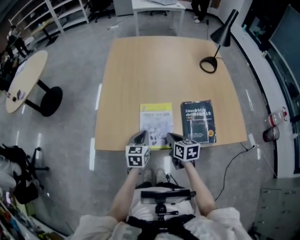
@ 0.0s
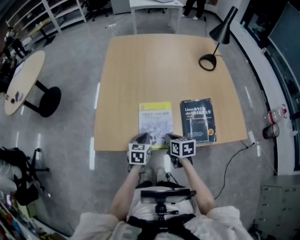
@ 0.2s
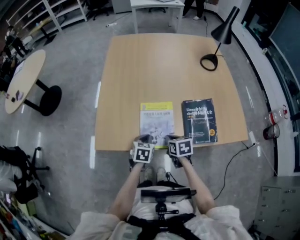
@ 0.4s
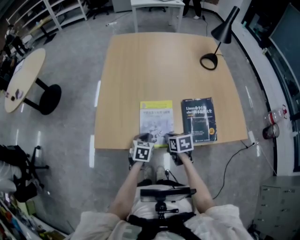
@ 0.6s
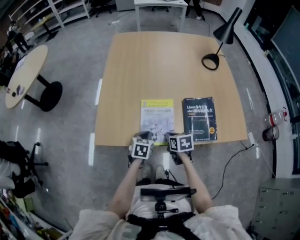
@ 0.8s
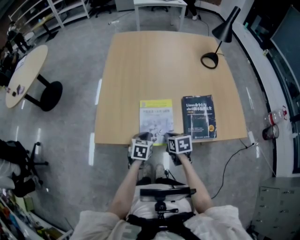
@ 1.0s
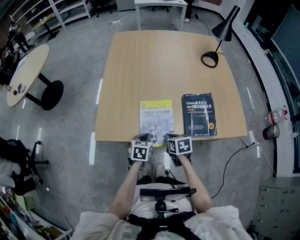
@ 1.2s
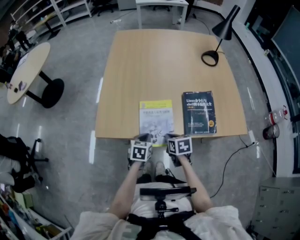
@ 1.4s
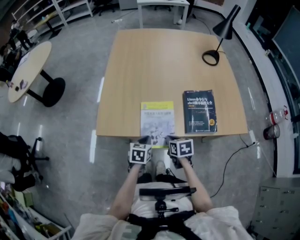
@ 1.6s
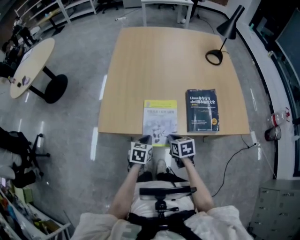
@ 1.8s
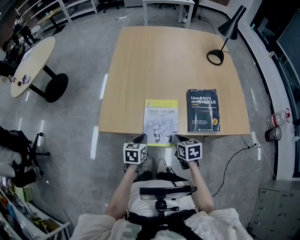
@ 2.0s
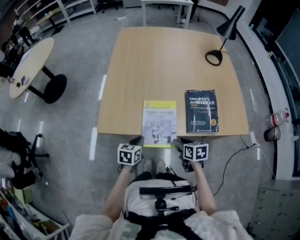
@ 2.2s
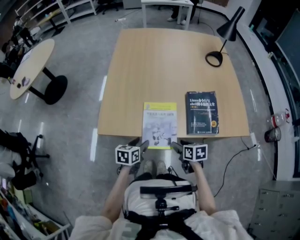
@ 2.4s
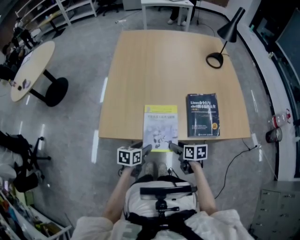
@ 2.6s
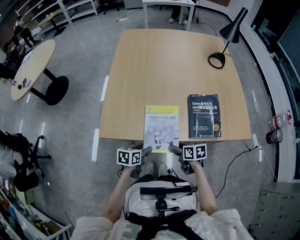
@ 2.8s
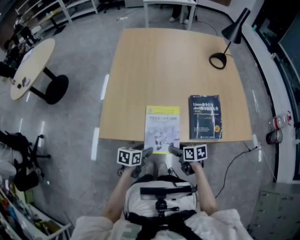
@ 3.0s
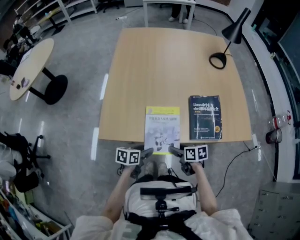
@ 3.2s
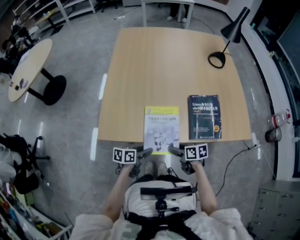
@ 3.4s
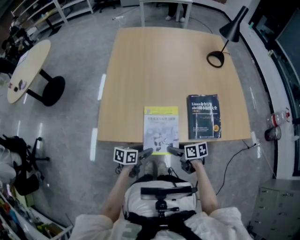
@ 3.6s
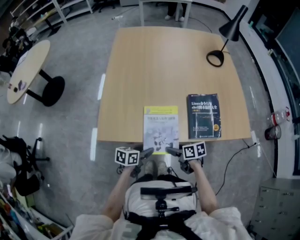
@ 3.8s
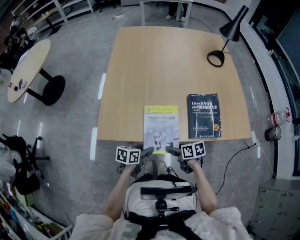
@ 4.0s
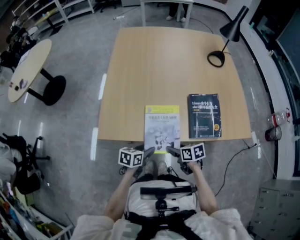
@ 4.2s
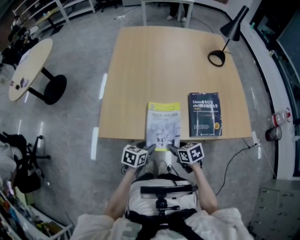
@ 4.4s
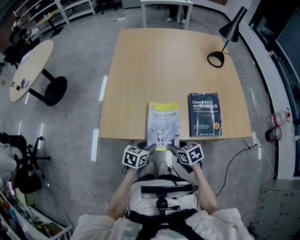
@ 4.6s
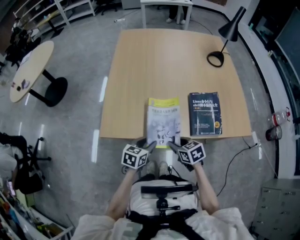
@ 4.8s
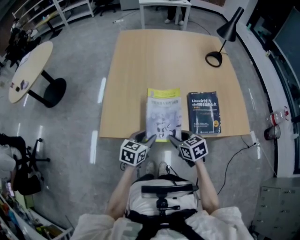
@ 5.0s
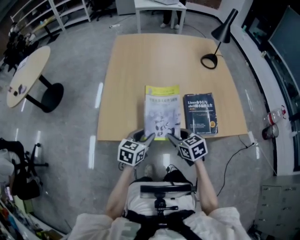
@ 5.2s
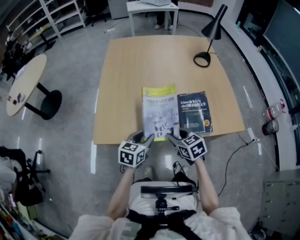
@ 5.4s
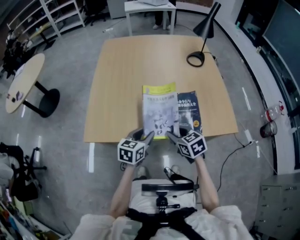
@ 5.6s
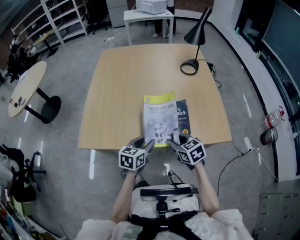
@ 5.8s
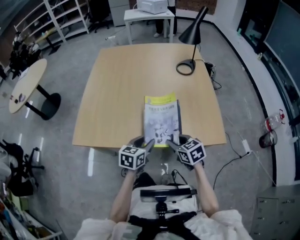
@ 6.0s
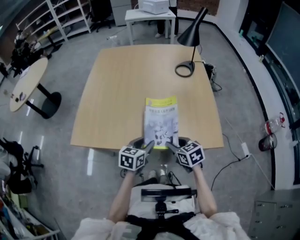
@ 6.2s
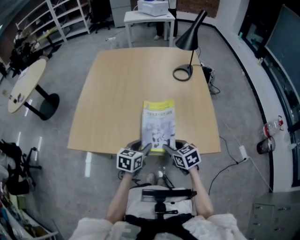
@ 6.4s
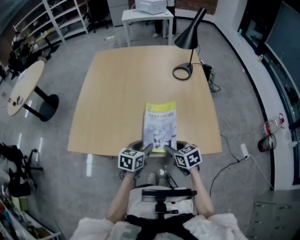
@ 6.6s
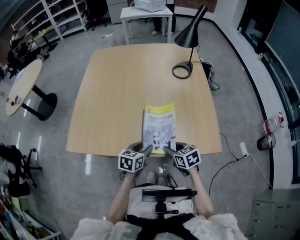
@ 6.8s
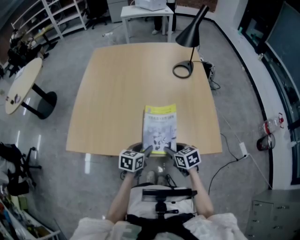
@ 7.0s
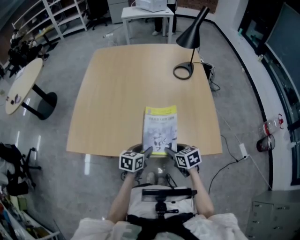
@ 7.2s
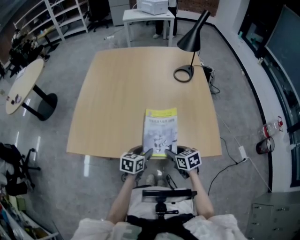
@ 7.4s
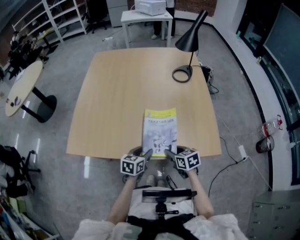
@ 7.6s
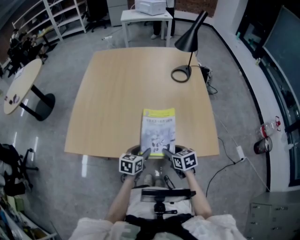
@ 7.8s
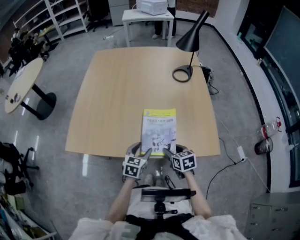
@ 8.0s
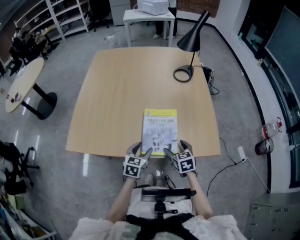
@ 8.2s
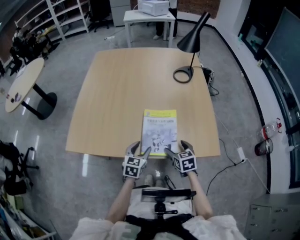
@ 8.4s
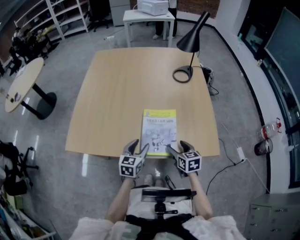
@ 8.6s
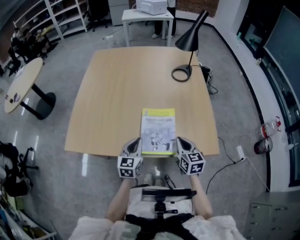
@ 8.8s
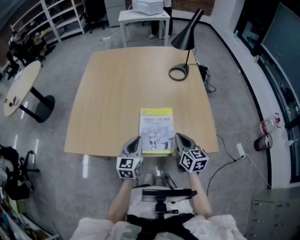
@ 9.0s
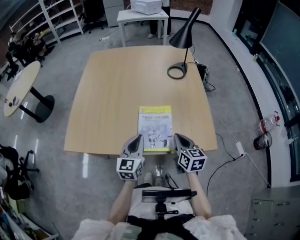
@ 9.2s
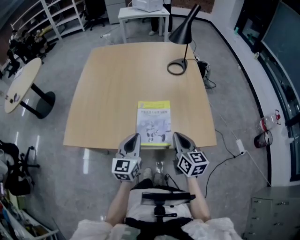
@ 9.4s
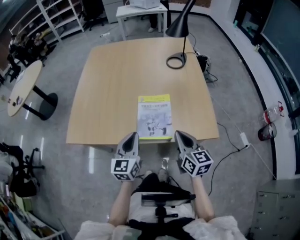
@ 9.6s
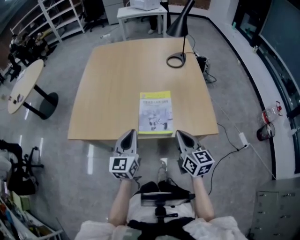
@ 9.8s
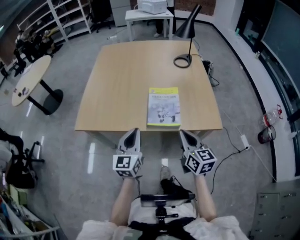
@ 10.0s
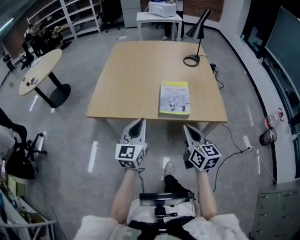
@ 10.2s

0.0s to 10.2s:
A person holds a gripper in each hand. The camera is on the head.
0.0s to 1.4s: Both grippers move backward and downward, approximately 10 cm.
1.4s to 3.0s: The right gripper opens up; the left gripper shifts by approximately 5 cm, swivels about 20 degrees, and opens.
3.0s to 4.4s: The grippers make only small movements.
4.4s to 5.8s: The two grippers go about 20 cm to the right and upward. The right gripper turns by approximately 20 degrees.
5.8s to 7.2s: The grippers both shift to the right and downward by roughly 10 cm.
7.2s to 8.8s: The right gripper shifts roughly 10 cm upward and to the right, turns by about 30 degrees, and closes up; the left gripper goes approximately 5 cm upward, rotates about 30 degrees, and closes up.
8.8s to 10.2s: Both grippers travel together backward, upward and to the left, some 25 cm.

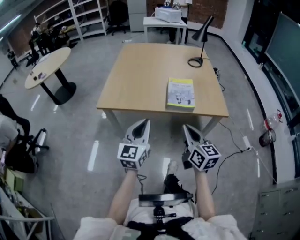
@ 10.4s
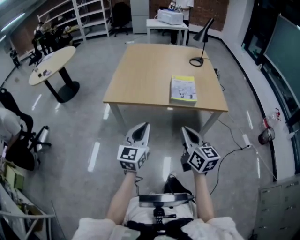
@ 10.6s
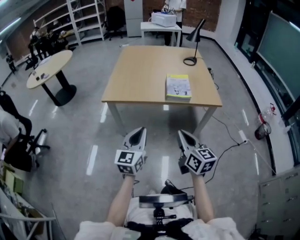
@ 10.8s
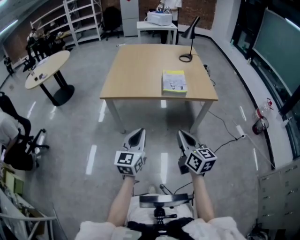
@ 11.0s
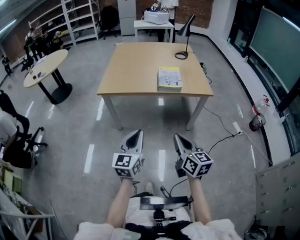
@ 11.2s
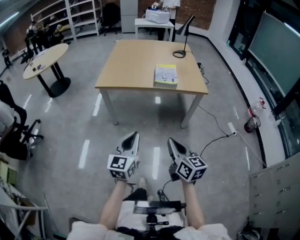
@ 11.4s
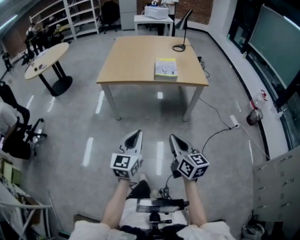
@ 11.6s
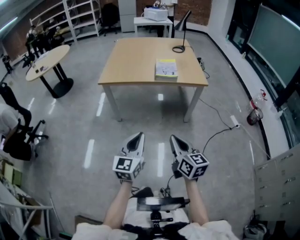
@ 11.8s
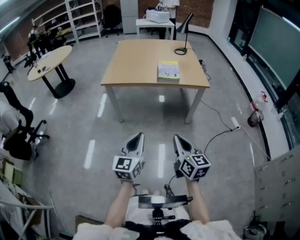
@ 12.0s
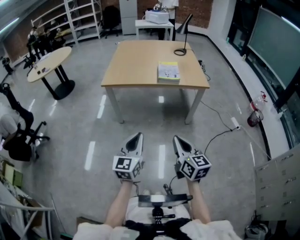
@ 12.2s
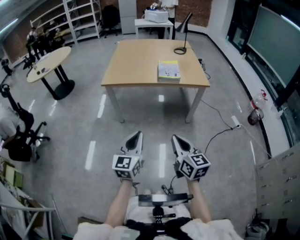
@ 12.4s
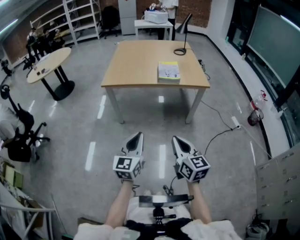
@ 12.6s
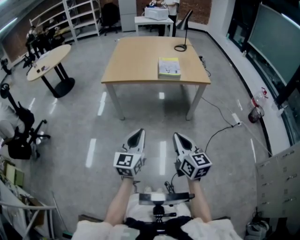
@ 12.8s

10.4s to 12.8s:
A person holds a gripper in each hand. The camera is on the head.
10.4s to 11.6s: The two grippers go approximately 35 cm backward.
11.6s to 12.8s: The grippers stay close to where they were, moving slightly.

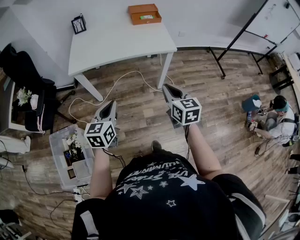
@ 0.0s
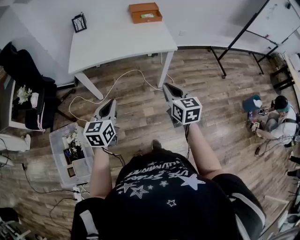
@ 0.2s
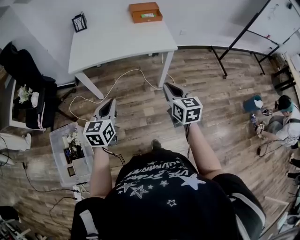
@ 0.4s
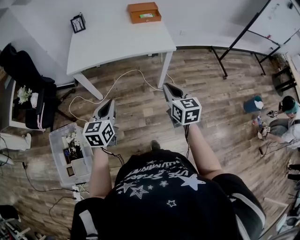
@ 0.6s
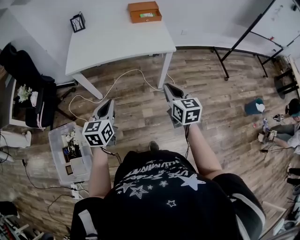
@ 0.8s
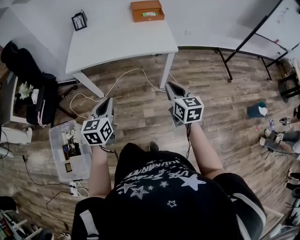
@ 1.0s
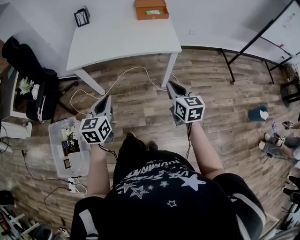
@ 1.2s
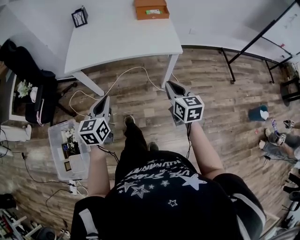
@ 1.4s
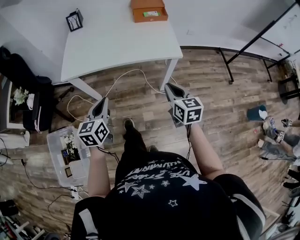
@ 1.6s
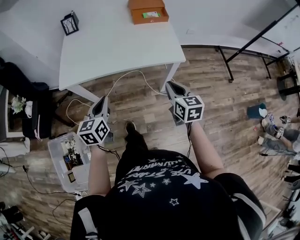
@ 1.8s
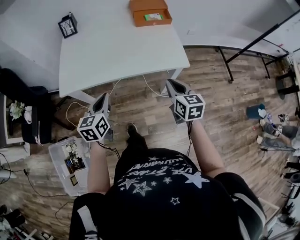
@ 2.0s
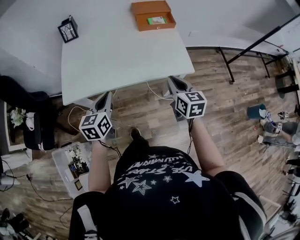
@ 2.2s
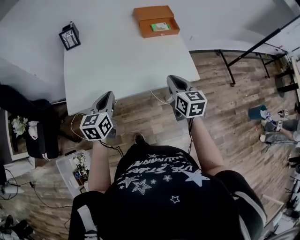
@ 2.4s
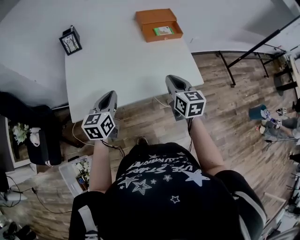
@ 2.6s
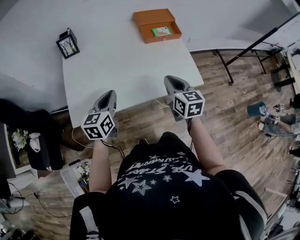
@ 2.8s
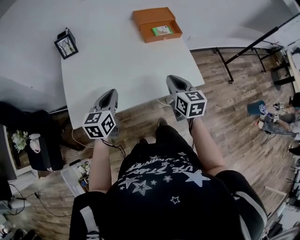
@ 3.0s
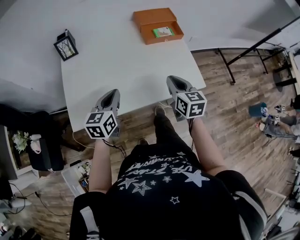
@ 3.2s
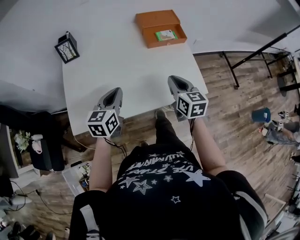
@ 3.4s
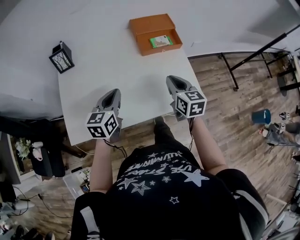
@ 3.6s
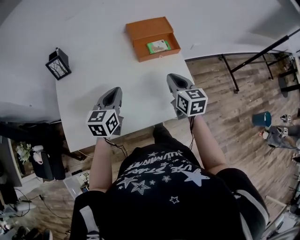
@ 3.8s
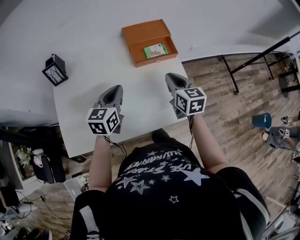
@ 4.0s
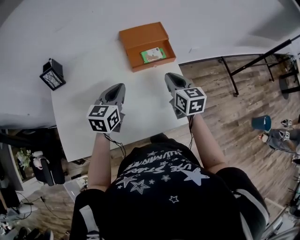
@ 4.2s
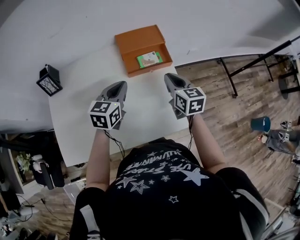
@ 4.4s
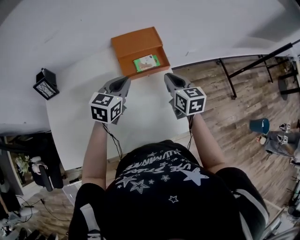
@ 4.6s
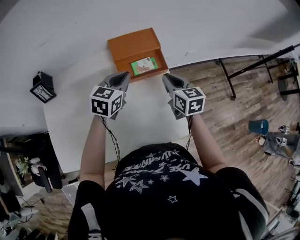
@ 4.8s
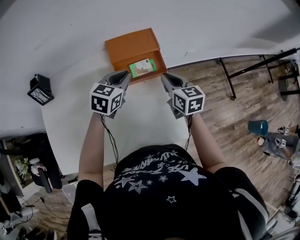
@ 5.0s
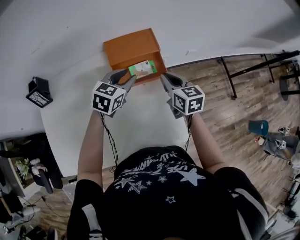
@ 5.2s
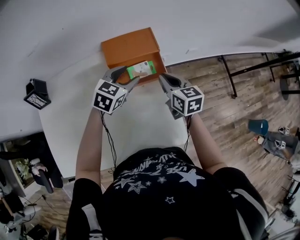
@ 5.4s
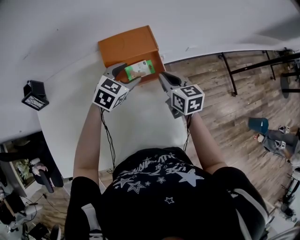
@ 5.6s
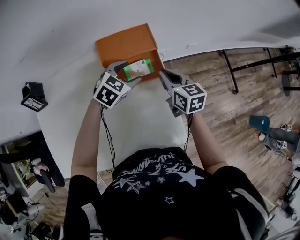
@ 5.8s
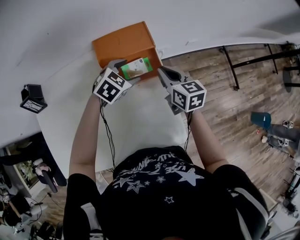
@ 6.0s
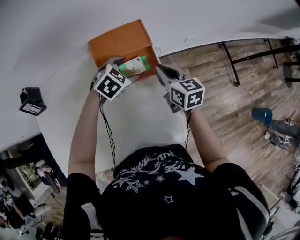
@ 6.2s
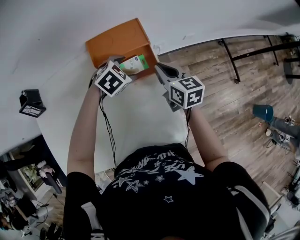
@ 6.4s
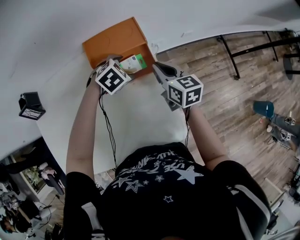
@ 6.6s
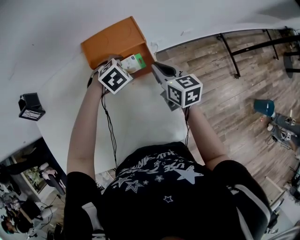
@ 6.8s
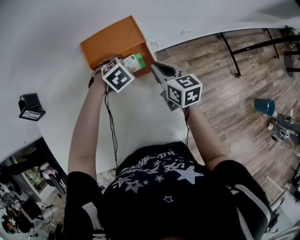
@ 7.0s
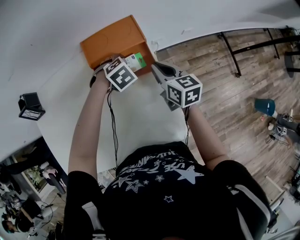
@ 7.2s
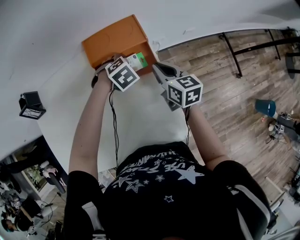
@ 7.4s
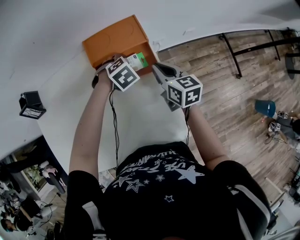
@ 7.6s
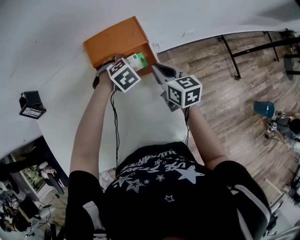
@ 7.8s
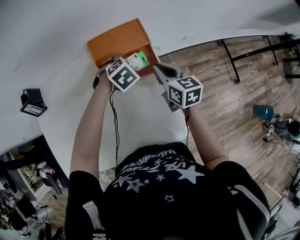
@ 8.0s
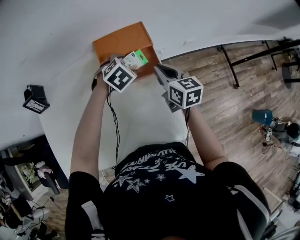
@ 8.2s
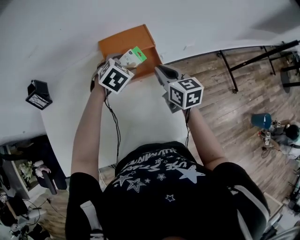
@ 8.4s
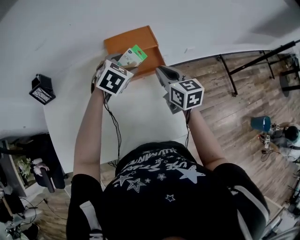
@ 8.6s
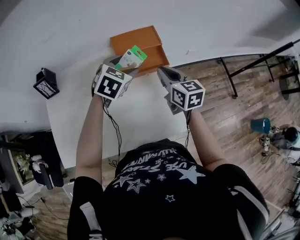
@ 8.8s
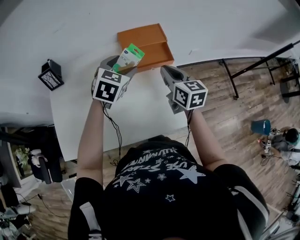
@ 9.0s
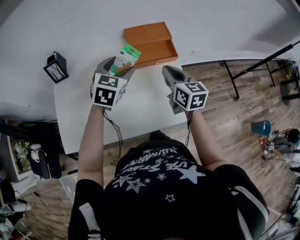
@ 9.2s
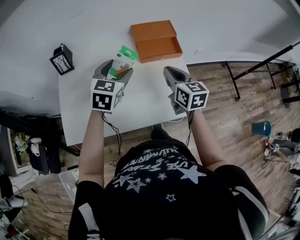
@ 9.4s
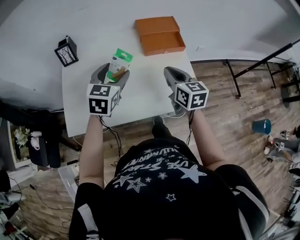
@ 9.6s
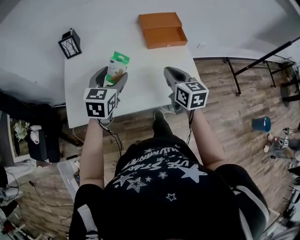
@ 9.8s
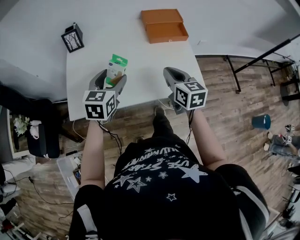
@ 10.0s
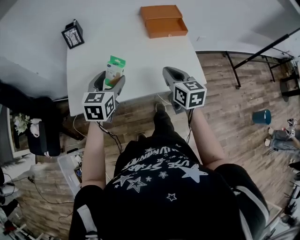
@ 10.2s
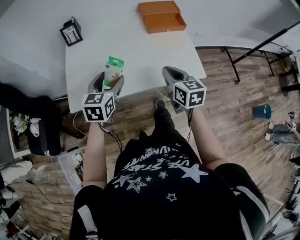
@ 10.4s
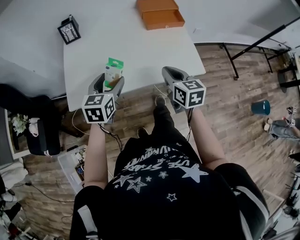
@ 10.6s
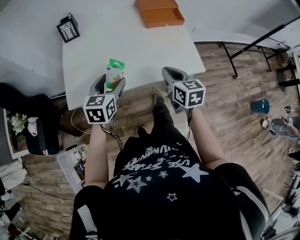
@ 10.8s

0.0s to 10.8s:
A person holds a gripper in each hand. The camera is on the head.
0.0s to 1.6s: Both grippers move forward, approximately 15 cm.
1.6s to 3.0s: The left gripper shifts roughly 35 cm forward. The right gripper shifts roughly 35 cm forward and to the left.
3.0s to 4.6s: The grippers both shift forward and to the right by about 40 cm. The left gripper swivels approximately 20 degrees.
4.6s to 6.2s: The right gripper goes some 15 cm forward and downward. The left gripper heads forward, downward and to the right, covering some 25 cm, turns by about 40 degrees, and opens.
6.2s to 7.8s: The left gripper travels downward by roughly 5 cm.
7.8s to 9.2s: Both grippers move backward, upward and to the left, roughly 30 cm. The left gripper tilts its fingers approximately 40 degrees upward.
9.2s to 10.8s: Both grippers move backward and to the left, about 35 cm. The left gripper changes its angle by approximately 20 degrees.
